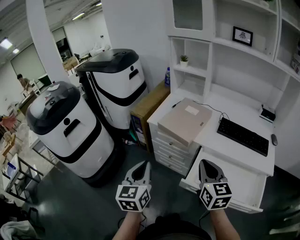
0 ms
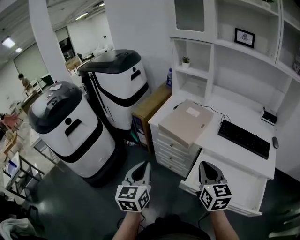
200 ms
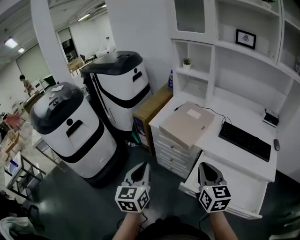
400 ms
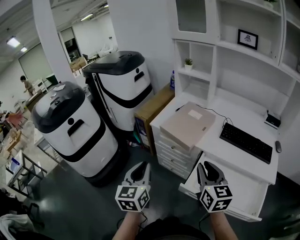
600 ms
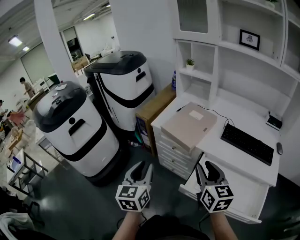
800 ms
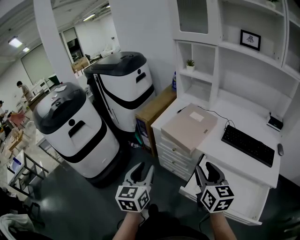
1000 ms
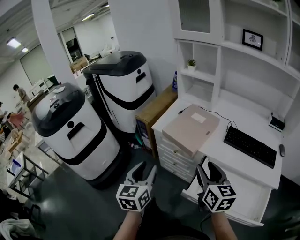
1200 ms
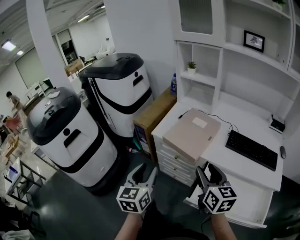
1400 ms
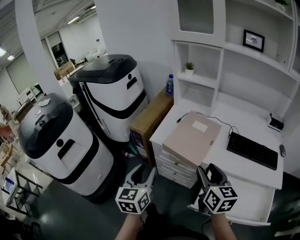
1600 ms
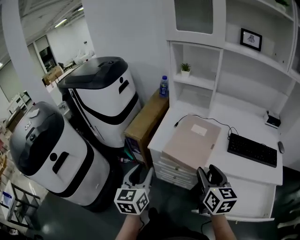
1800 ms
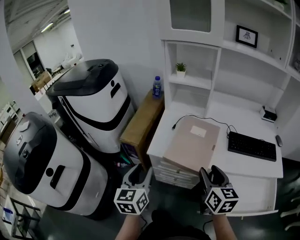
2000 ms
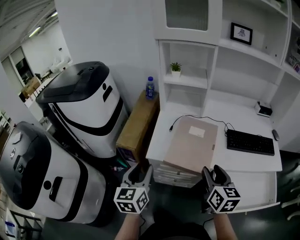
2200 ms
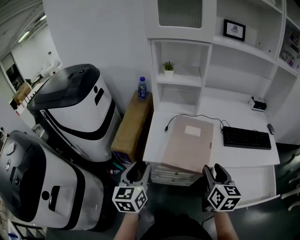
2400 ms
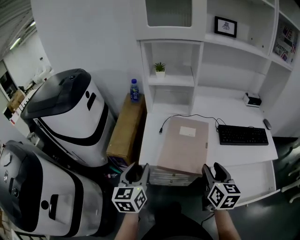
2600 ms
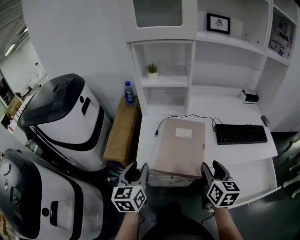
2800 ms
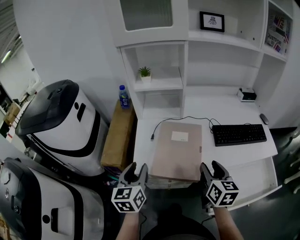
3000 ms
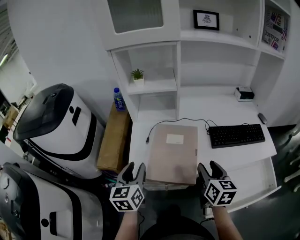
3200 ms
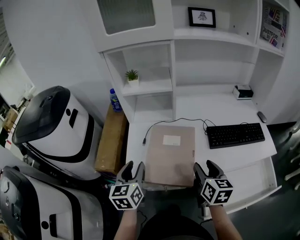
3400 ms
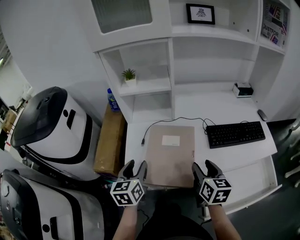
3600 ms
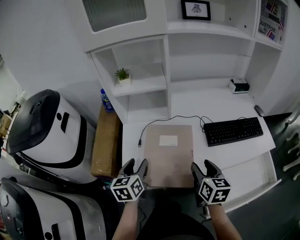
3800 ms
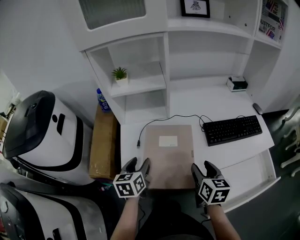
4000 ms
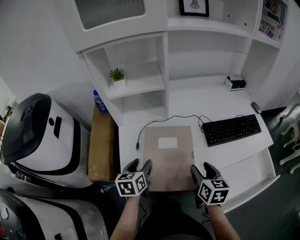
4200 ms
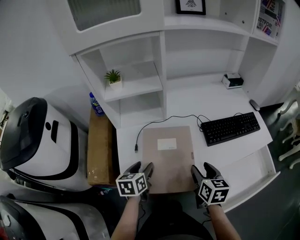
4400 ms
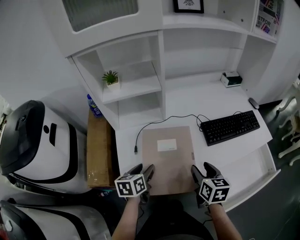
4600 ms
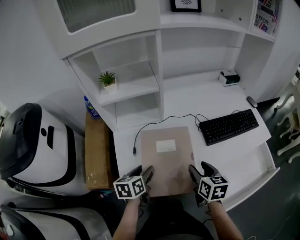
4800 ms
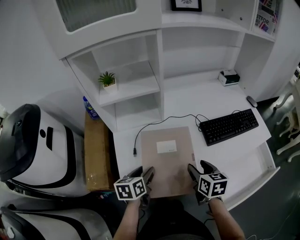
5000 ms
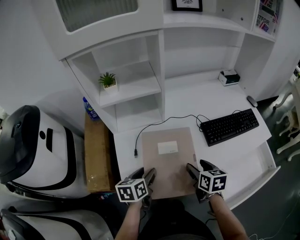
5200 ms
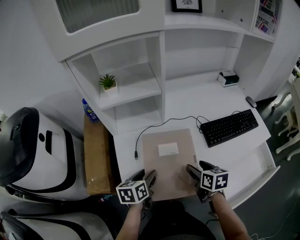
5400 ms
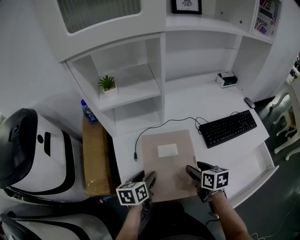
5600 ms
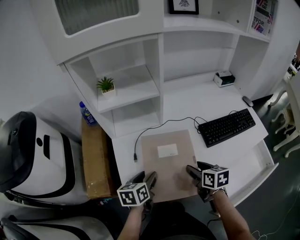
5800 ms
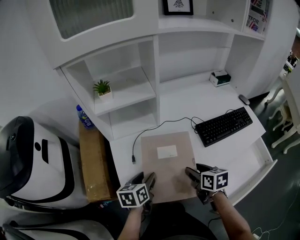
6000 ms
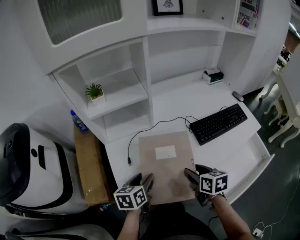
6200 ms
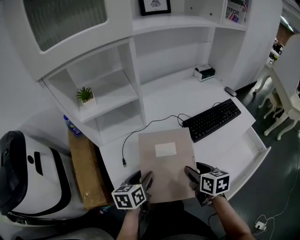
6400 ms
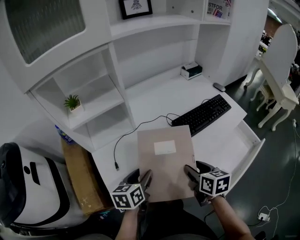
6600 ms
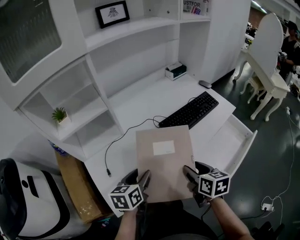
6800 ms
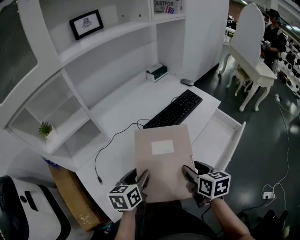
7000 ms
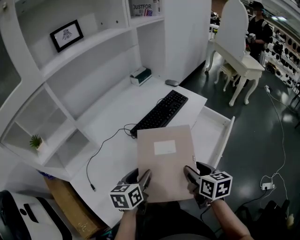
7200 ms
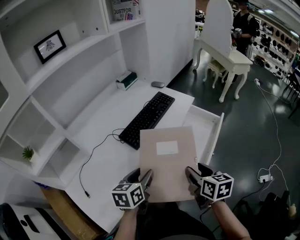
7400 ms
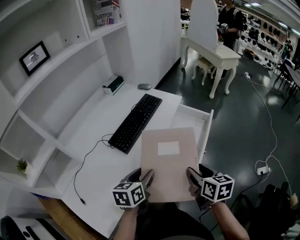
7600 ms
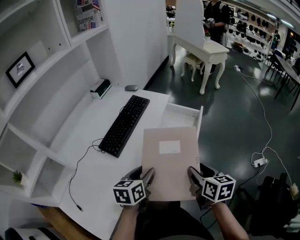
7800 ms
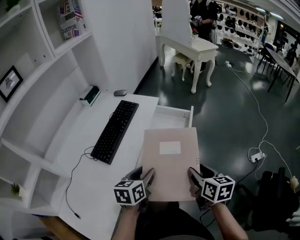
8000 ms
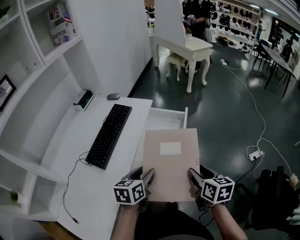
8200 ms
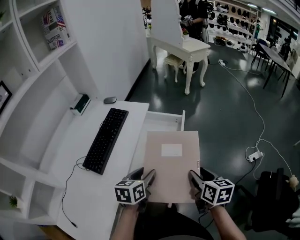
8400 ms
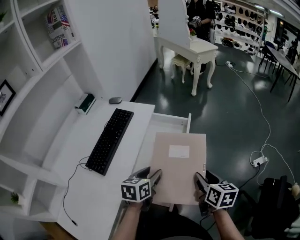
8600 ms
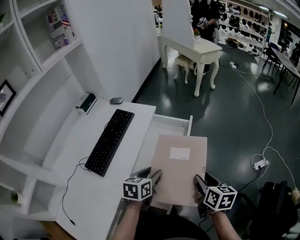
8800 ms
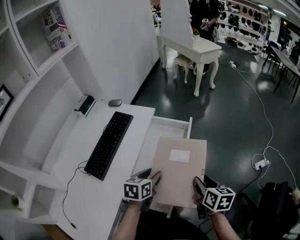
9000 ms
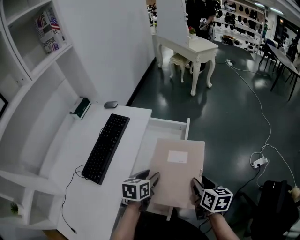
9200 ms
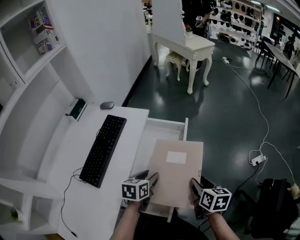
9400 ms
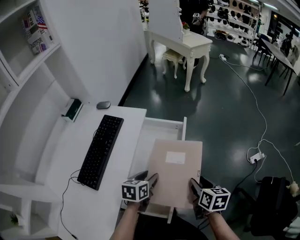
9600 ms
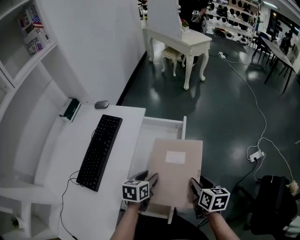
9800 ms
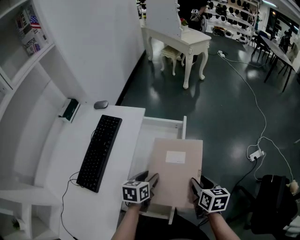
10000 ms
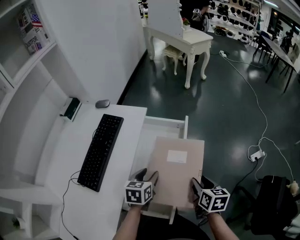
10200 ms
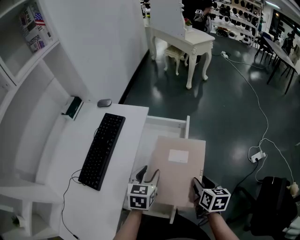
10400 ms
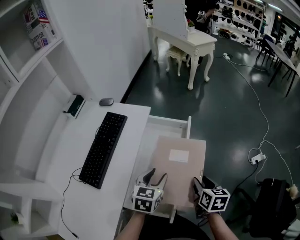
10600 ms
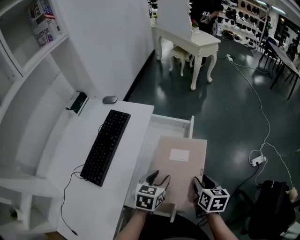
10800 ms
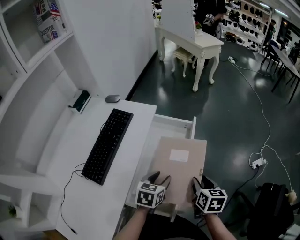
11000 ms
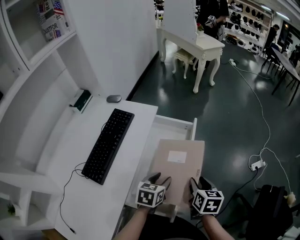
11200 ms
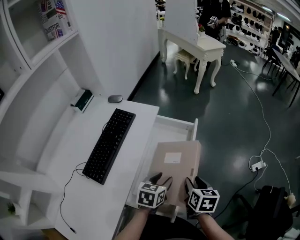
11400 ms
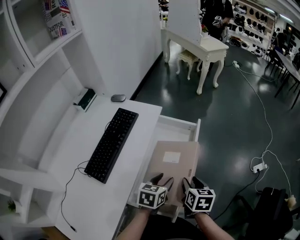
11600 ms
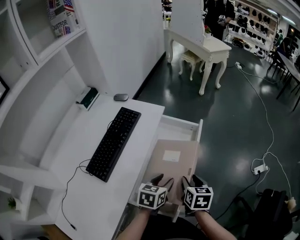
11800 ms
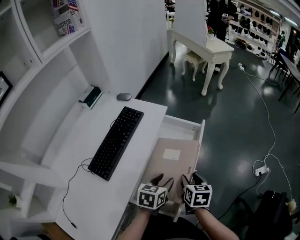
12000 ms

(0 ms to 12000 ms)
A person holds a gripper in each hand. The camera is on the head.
0 ms - 1600 ms: The grippers both shift forward by approximately 15 cm. The left gripper opens up; the right gripper opens.
1600 ms - 3000 ms: The right gripper ends up about 10 cm from where it was, and turns by some 30 degrees. The left gripper ends up some 20 cm from where it was, and turns by about 20 degrees.
3000 ms - 4400 ms: The right gripper is displaced downward and forward by about 10 cm. Meanwhile the left gripper shifts some 20 cm forward, downward and to the right, and turns by some 30 degrees.
4400 ms - 6000 ms: The right gripper heads downward, covering approximately 5 cm.
6000 ms - 7600 ms: The right gripper moves about 35 cm, and swivels about 50 degrees. The left gripper changes place by about 35 cm, and changes its angle by roughly 50 degrees.
7600 ms - 9000 ms: Both grippers travel together to the right and forward, roughly 20 cm. The left gripper changes its angle by roughly 20 degrees.
9000 ms - 10400 ms: The right gripper ends up approximately 5 cm from where it was, while the left gripper travels forward by some 5 cm.
10400 ms - 12000 ms: The right gripper is displaced to the left by roughly 10 cm. The left gripper moves backward, roughly 5 cm.

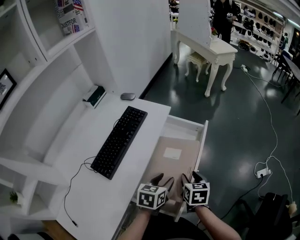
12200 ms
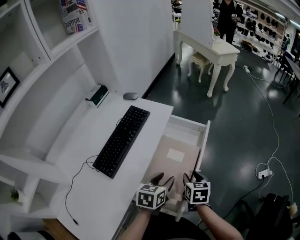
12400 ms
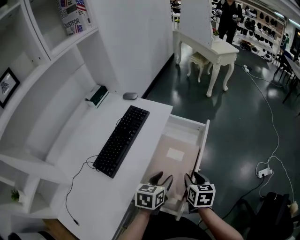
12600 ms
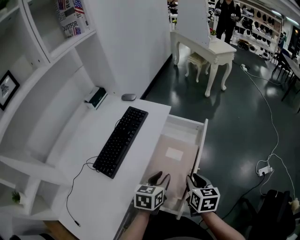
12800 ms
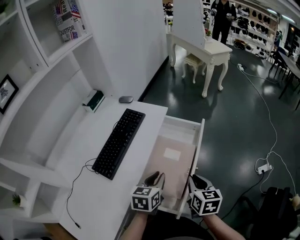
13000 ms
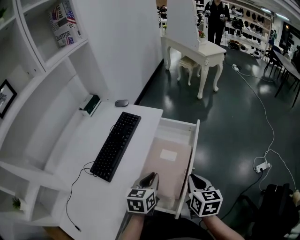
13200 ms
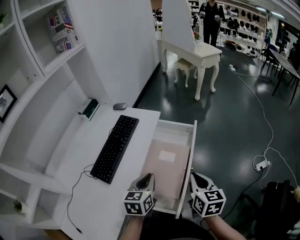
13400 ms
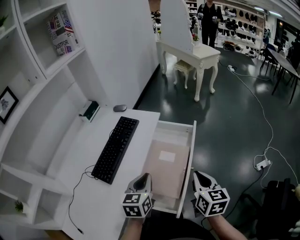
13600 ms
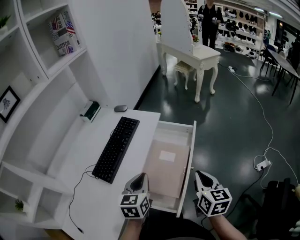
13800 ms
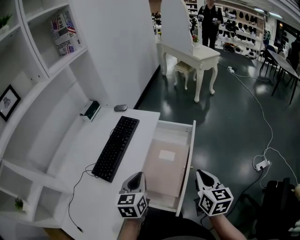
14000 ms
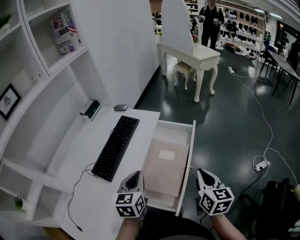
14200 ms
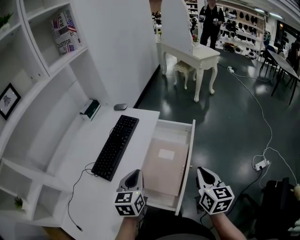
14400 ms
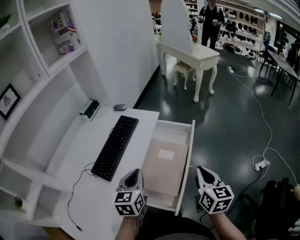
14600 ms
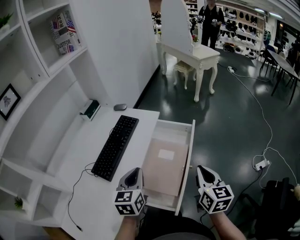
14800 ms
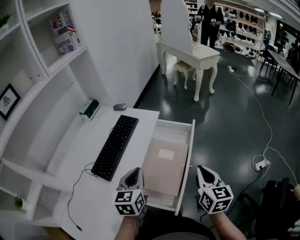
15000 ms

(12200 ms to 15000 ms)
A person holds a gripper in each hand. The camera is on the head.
12200 ms - 13600 ms: The left gripper is displaced upward and to the left by about 10 cm, turns by approximately 20 degrees, and closes up; the right gripper moves upward, about 15 cm, turns by about 20 degrees, and closes its fingers.
13600 ms - 15000 ms: The grippers make only small movements.

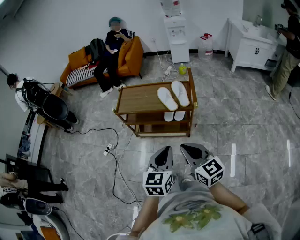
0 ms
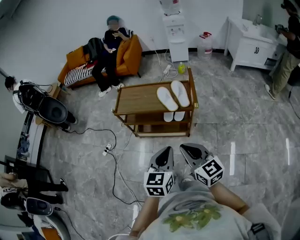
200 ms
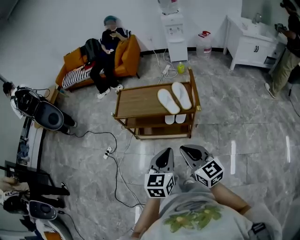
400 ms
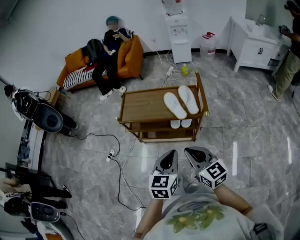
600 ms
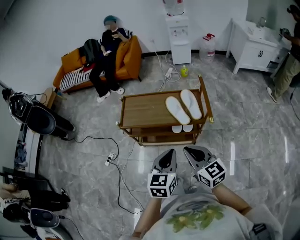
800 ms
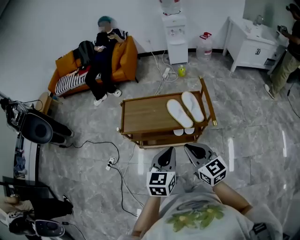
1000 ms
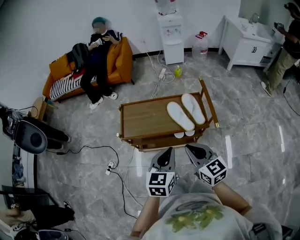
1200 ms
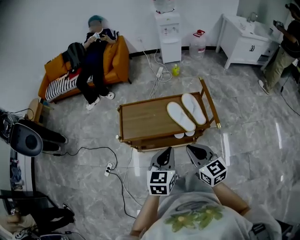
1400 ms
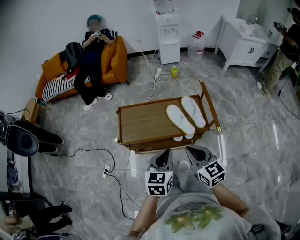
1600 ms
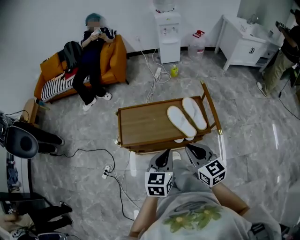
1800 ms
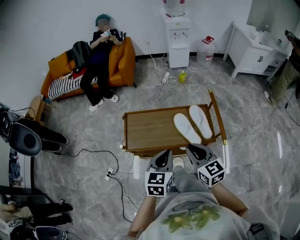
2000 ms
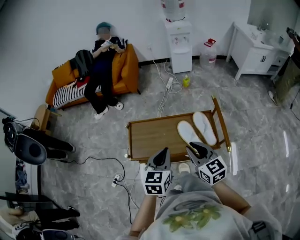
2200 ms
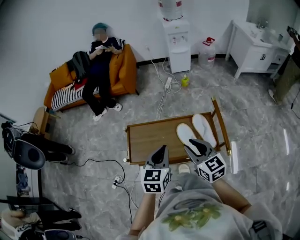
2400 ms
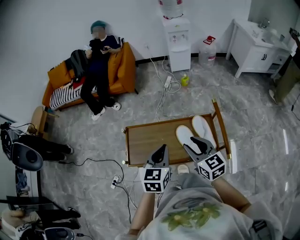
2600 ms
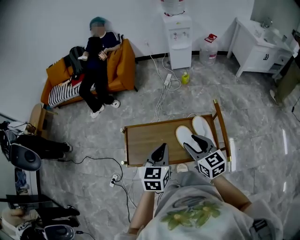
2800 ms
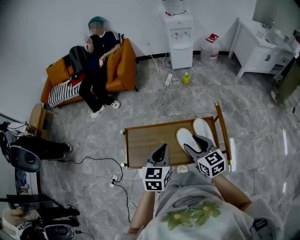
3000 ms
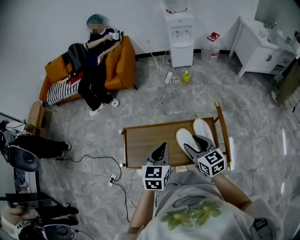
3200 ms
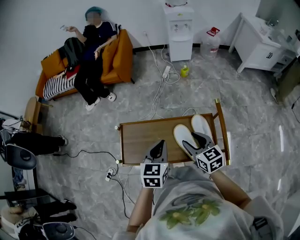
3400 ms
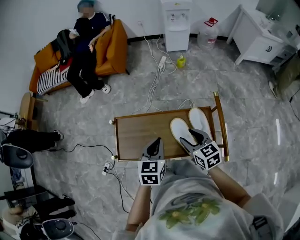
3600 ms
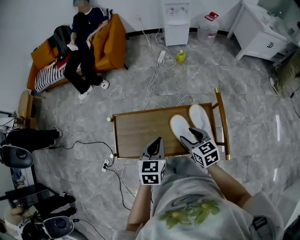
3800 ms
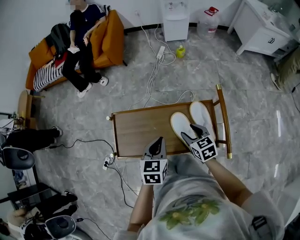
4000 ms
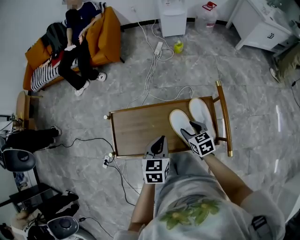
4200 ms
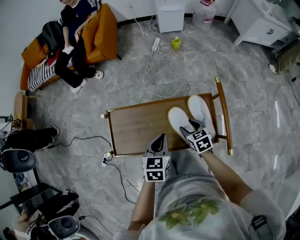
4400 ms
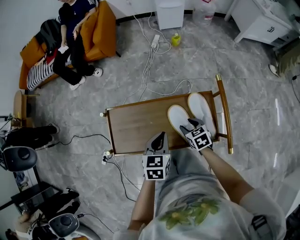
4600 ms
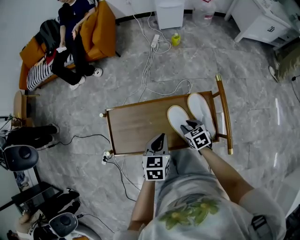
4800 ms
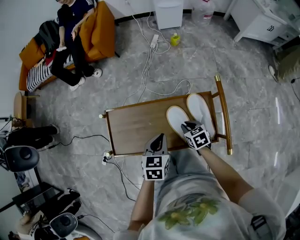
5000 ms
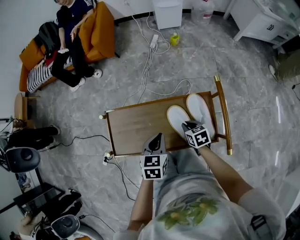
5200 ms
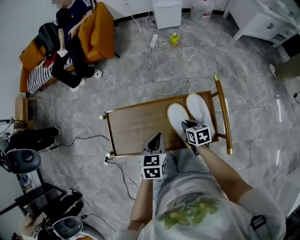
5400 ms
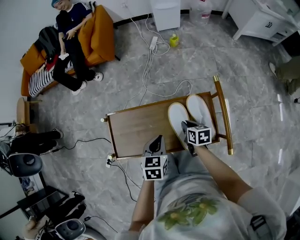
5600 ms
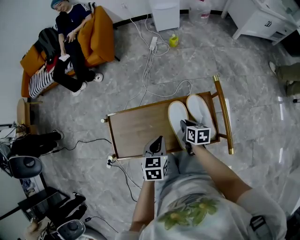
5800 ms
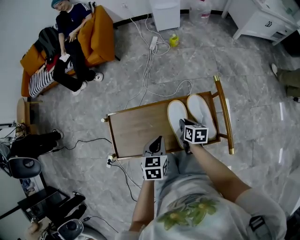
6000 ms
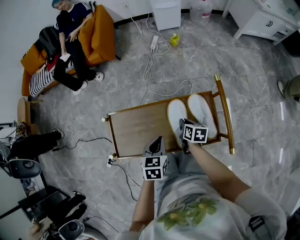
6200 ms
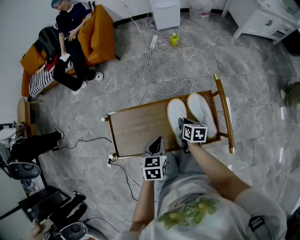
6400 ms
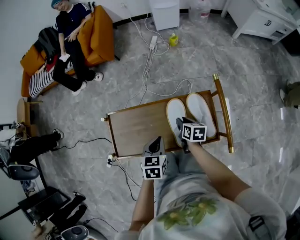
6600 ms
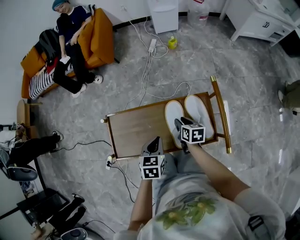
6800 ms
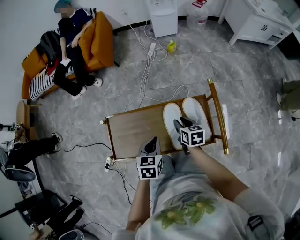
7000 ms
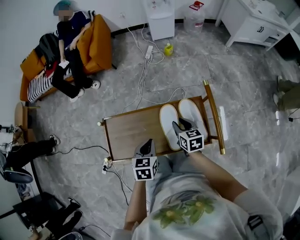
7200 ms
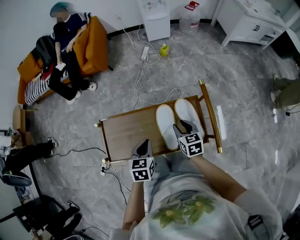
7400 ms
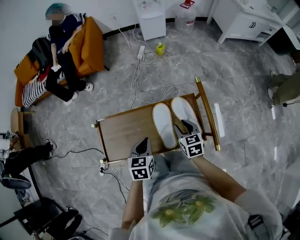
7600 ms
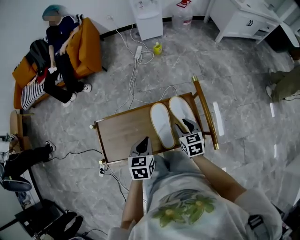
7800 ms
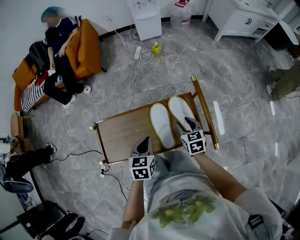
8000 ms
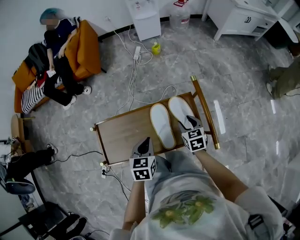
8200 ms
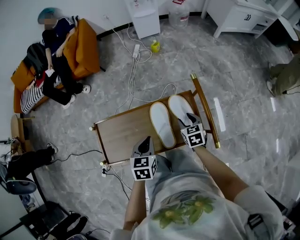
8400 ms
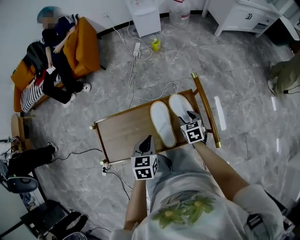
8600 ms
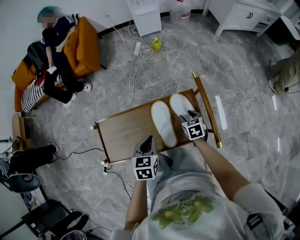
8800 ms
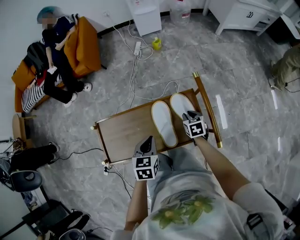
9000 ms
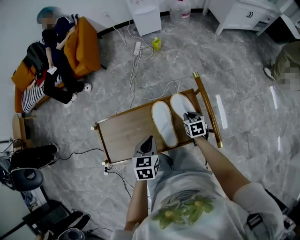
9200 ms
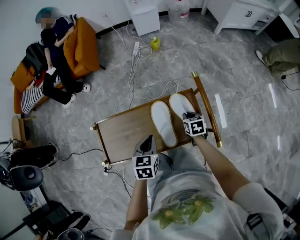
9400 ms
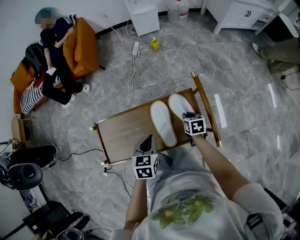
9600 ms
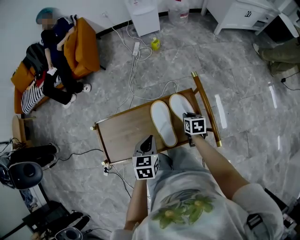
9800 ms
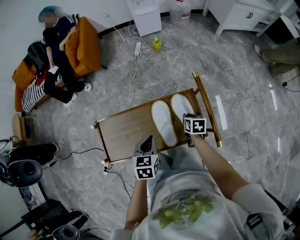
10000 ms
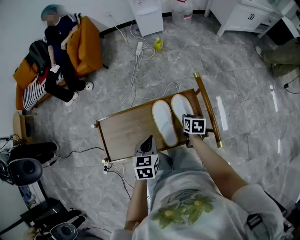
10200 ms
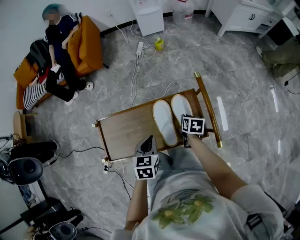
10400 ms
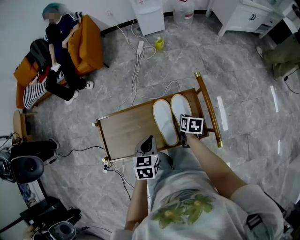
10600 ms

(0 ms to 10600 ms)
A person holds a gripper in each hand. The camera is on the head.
0 ms - 1600 ms: Both grippers move forward and to the left, about 30 cm.
1600 ms - 3000 ms: Both grippers travel together forward, some 20 cm. The right gripper opens its fingers.
3000 ms - 4600 ms: The left gripper is displaced downward by about 15 cm, while the right gripper goes some 25 cm downward, and rotates approximately 30 degrees.
4600 ms - 6000 ms: The right gripper rotates roughly 40 degrees, and closes its fingers.
6000 ms - 7600 ms: The right gripper heads upward, covering approximately 10 cm, swivels approximately 30 degrees, and opens.
7600 ms - 9000 ms: The right gripper heads downward and to the right, covering approximately 10 cm.
9000 ms - 10600 ms: The right gripper swivels about 30 degrees.
